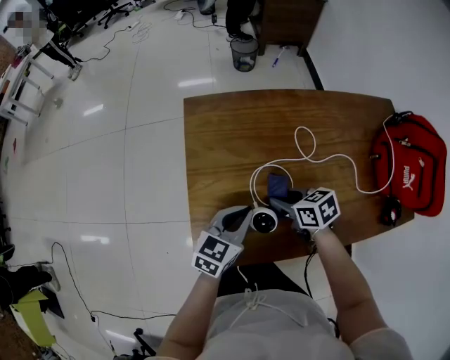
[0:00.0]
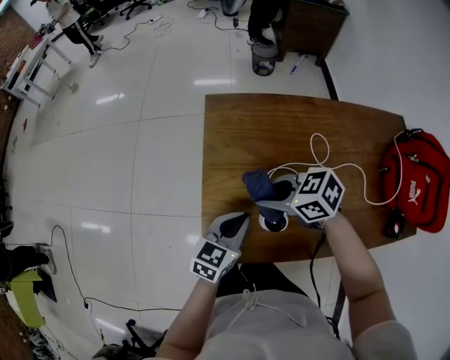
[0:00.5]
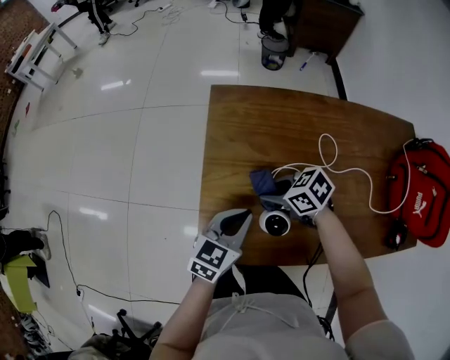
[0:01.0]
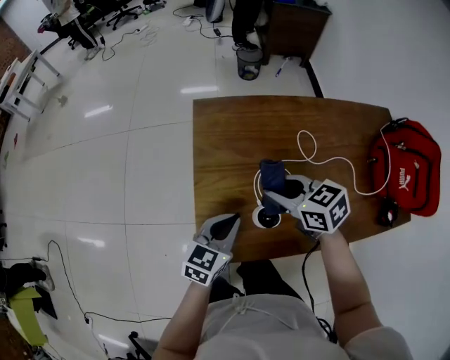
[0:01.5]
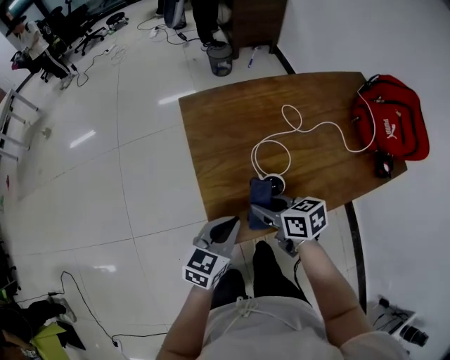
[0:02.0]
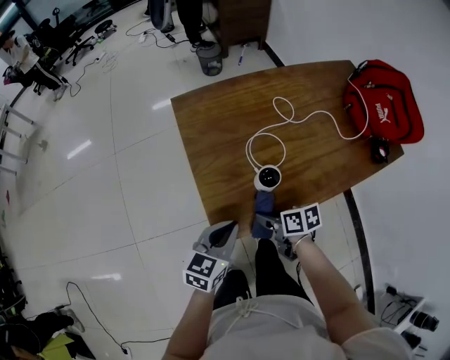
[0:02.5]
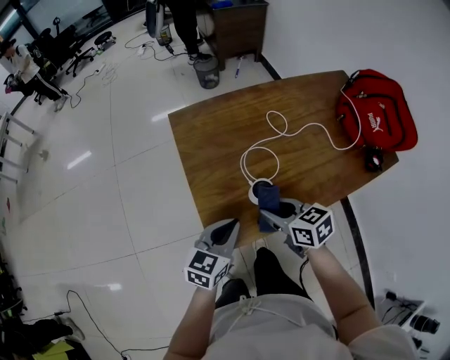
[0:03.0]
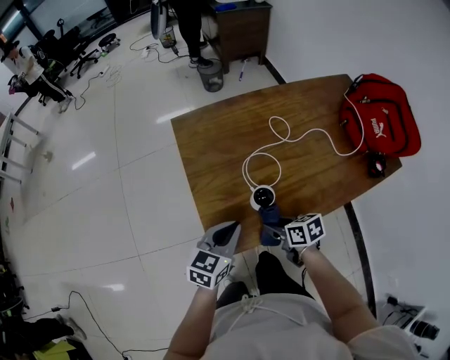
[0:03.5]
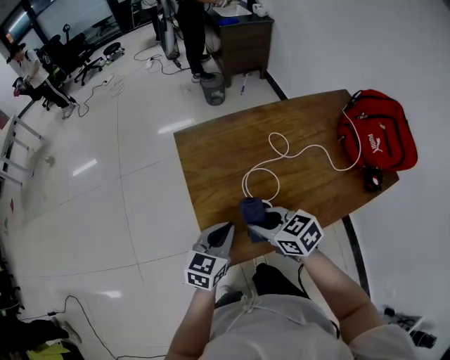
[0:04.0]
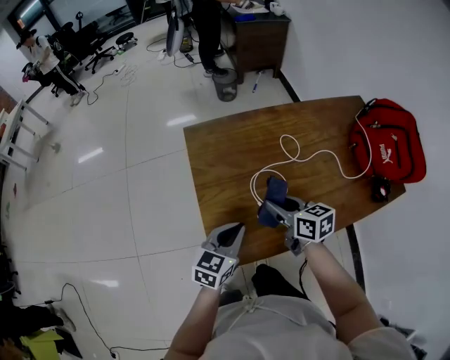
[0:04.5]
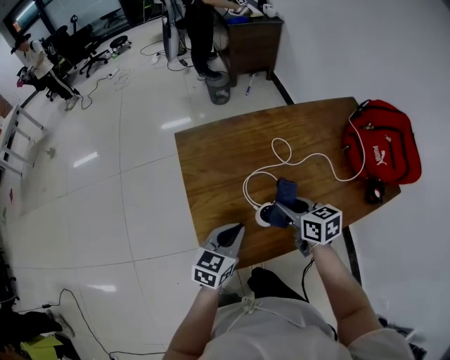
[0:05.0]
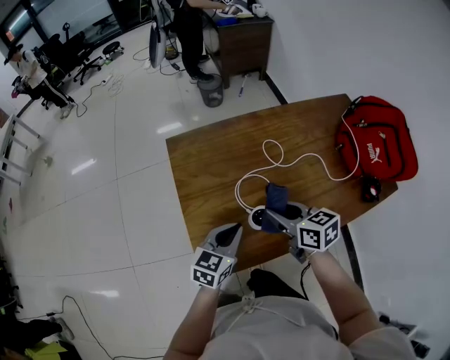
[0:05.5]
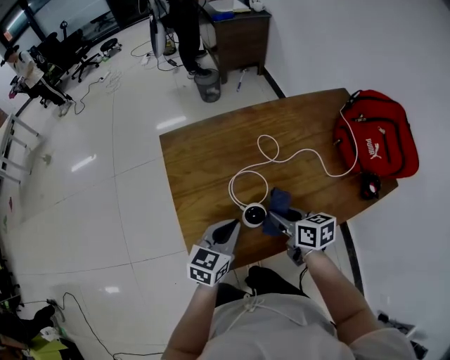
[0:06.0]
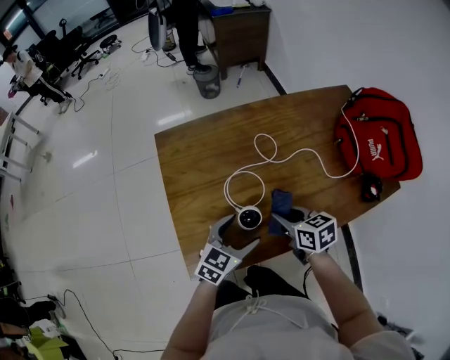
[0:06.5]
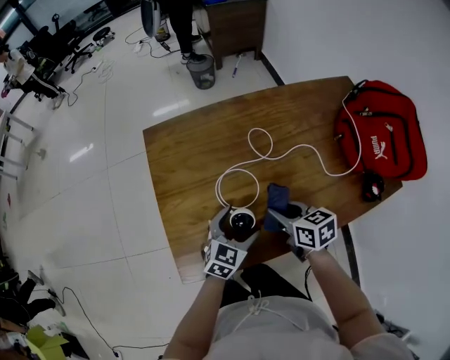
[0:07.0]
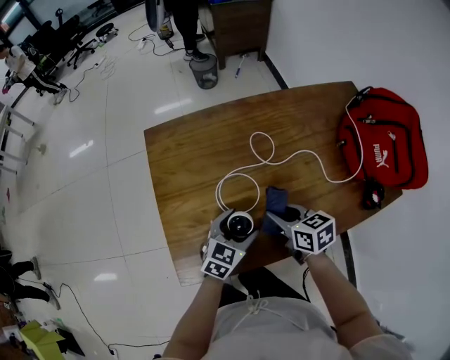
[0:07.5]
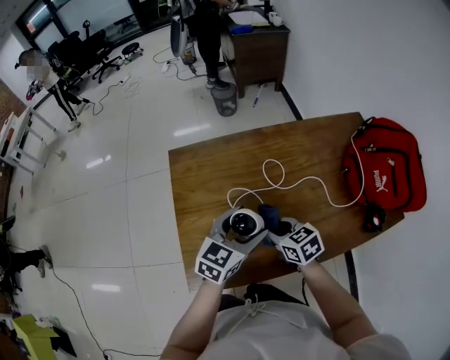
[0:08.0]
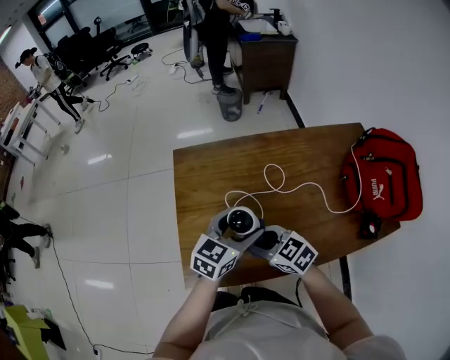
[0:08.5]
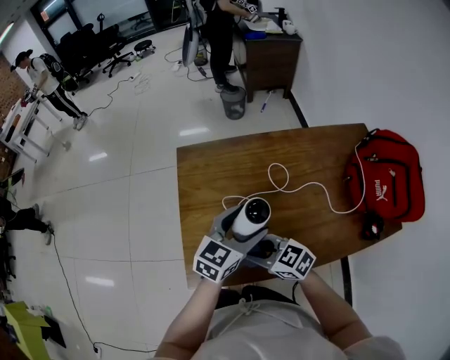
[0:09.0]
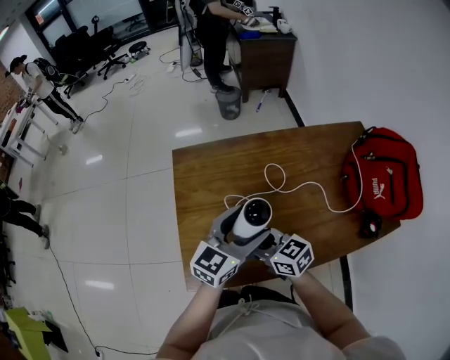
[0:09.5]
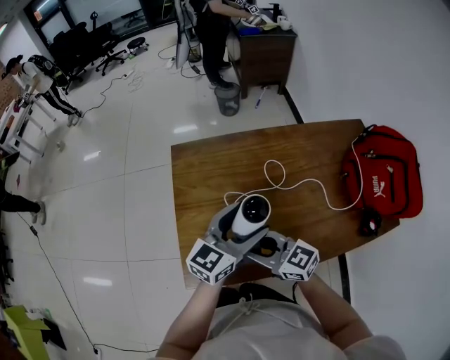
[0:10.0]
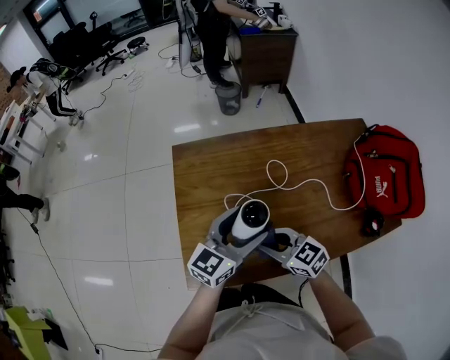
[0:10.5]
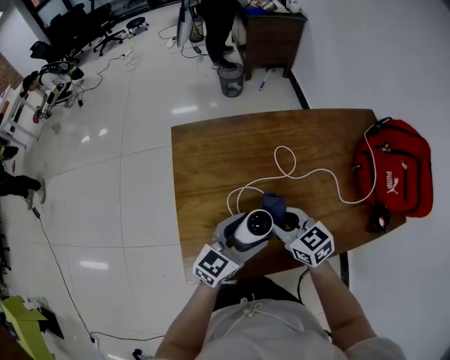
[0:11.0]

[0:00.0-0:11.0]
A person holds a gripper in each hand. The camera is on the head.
0:00.0 to 0:02.0: The left gripper moves roughly 15 cm. Meanwhile the right gripper goes up and down, some 10 cm each way, reversing 3 times.
0:02.0 to 0:03.5: The right gripper moves up and down over approximately 10 cm, changing direction 2 times.
0:03.5 to 0:05.5: The left gripper is displaced forward and to the right by about 10 cm. The right gripper is displaced upward and forward by some 20 cm, and turns by roughly 20 degrees.
0:05.5 to 0:07.5: The right gripper moves downward and to the right, roughly 10 cm. The left gripper travels to the right and downward by about 10 cm, and opens its fingers.
0:07.5 to 0:09.0: The right gripper moves to the left, backward and upward, roughly 15 cm, and swivels some 40 degrees. The left gripper travels upward by some 15 cm.
0:09.0 to 0:11.0: The left gripper goes some 5 cm downward; the right gripper goes about 10 cm forward and to the right, and changes its angle by roughly 20 degrees.

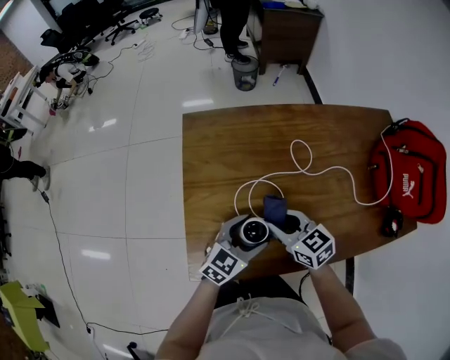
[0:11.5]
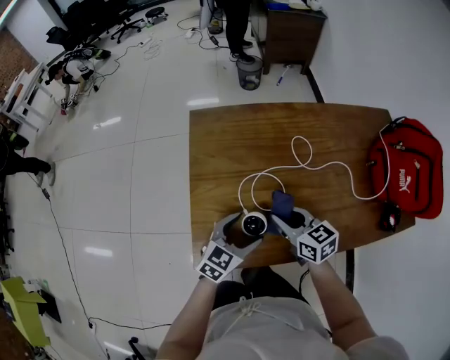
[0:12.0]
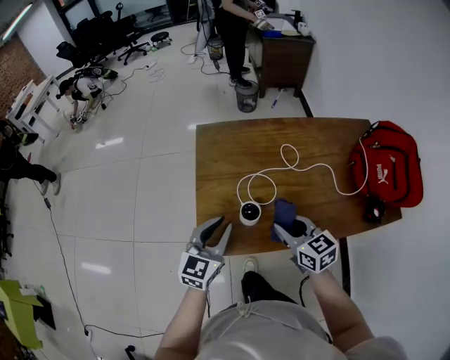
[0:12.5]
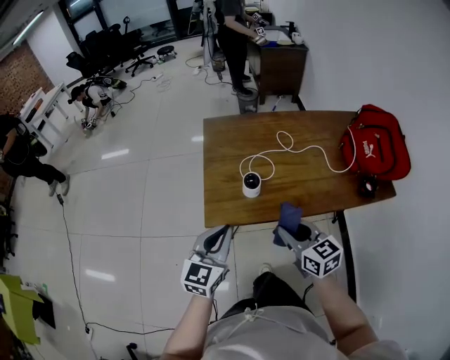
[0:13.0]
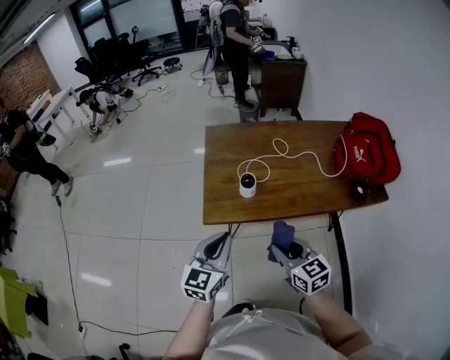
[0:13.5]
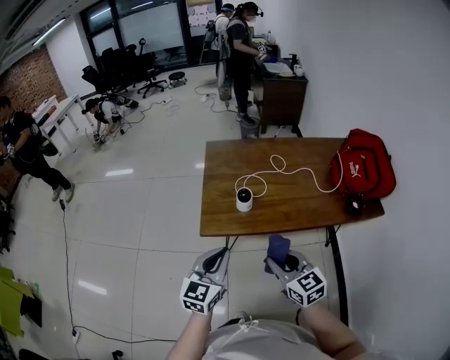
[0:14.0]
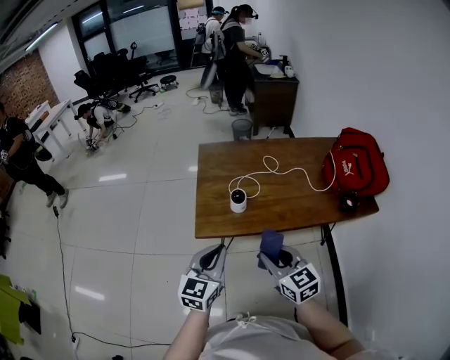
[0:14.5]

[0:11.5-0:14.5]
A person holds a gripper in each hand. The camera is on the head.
0:11.5 to 0:13.0: The left gripper heads backward, upward and to the left, covering approximately 30 cm, rotates roughly 30 degrees, and closes. The right gripper moves backward and upward, some 25 cm.
0:13.0 to 0:14.5: Both grippers move backward, approximately 5 cm.

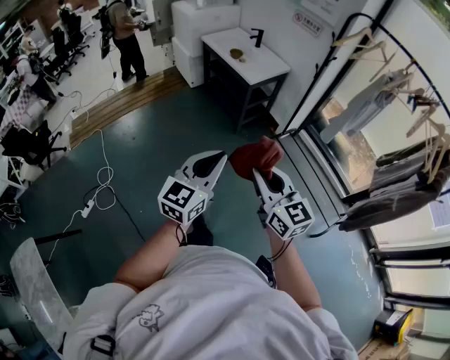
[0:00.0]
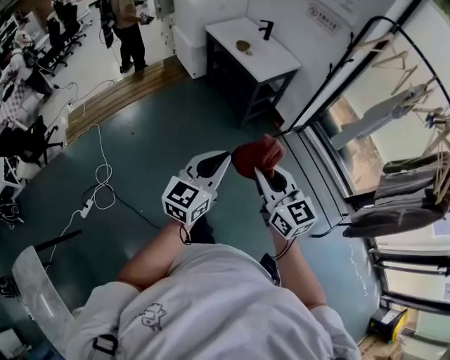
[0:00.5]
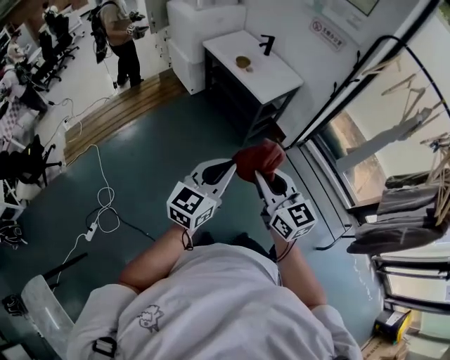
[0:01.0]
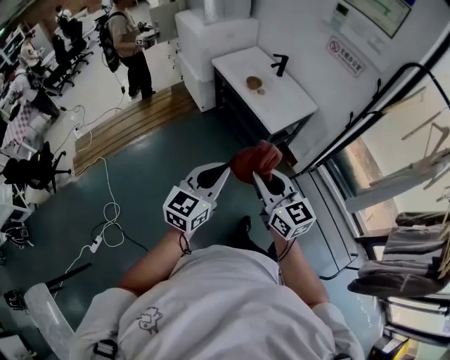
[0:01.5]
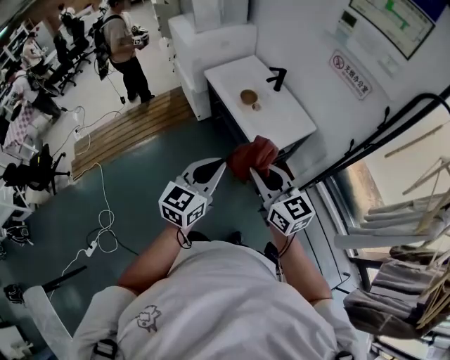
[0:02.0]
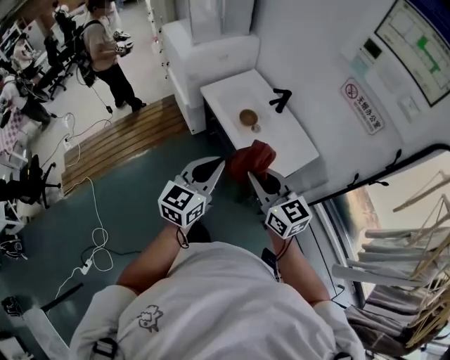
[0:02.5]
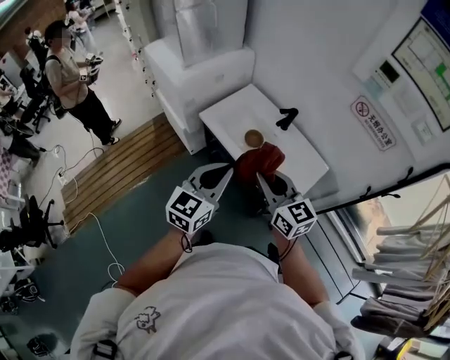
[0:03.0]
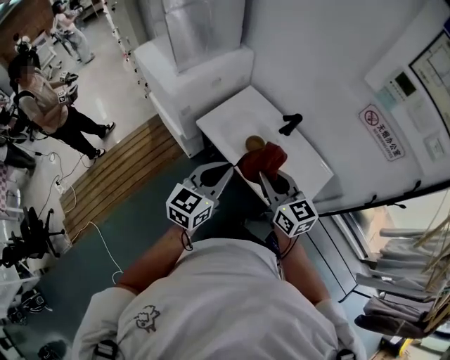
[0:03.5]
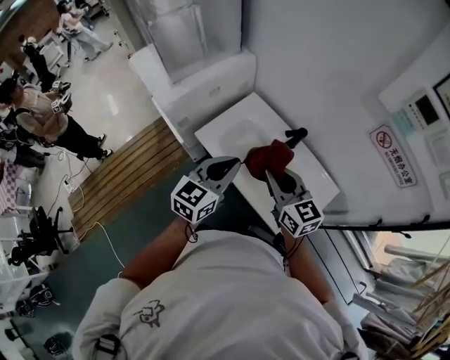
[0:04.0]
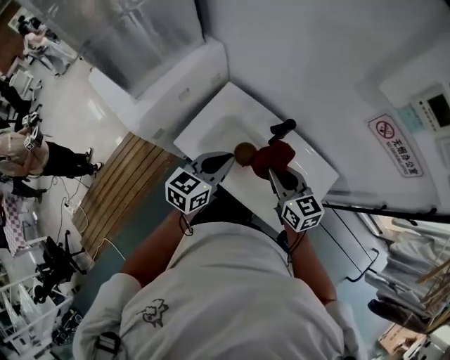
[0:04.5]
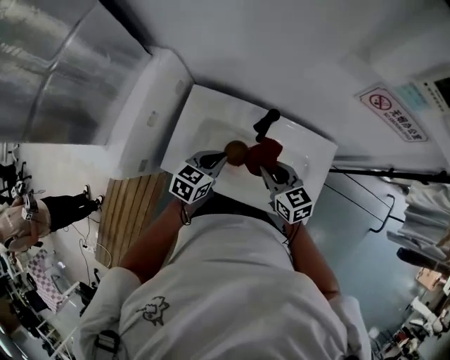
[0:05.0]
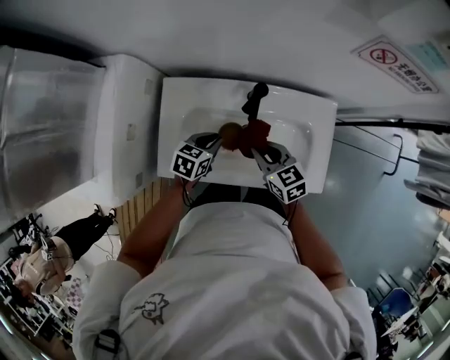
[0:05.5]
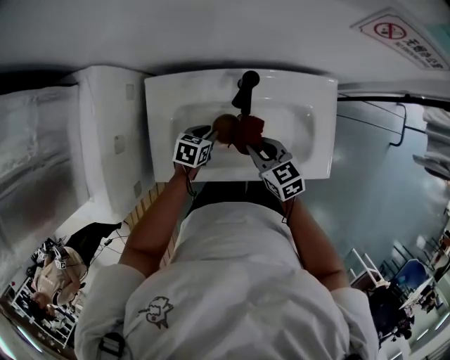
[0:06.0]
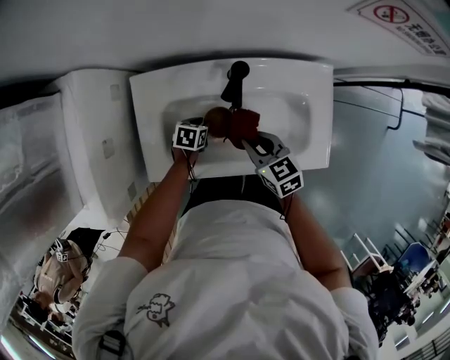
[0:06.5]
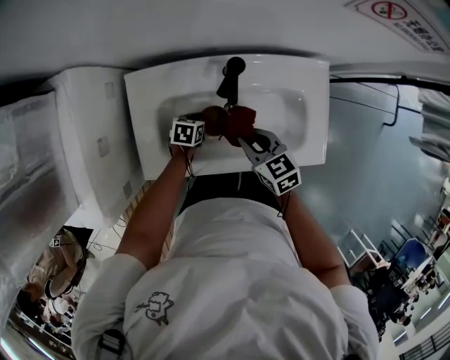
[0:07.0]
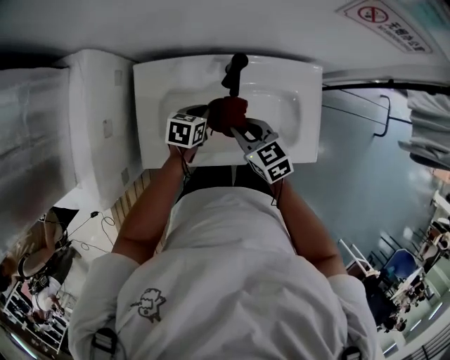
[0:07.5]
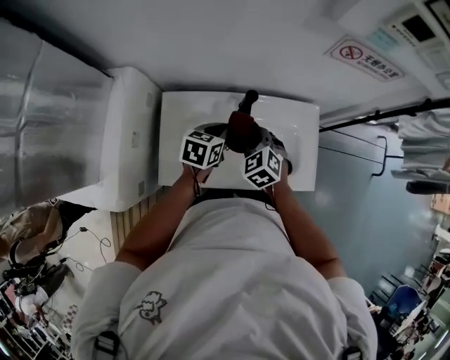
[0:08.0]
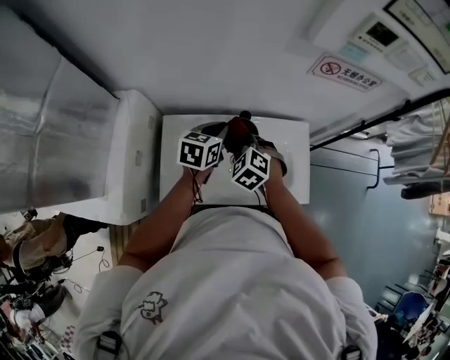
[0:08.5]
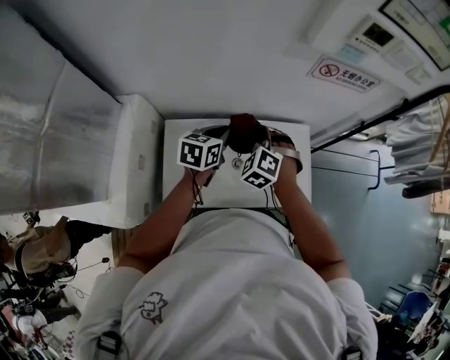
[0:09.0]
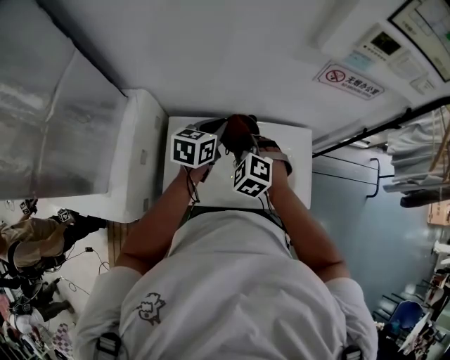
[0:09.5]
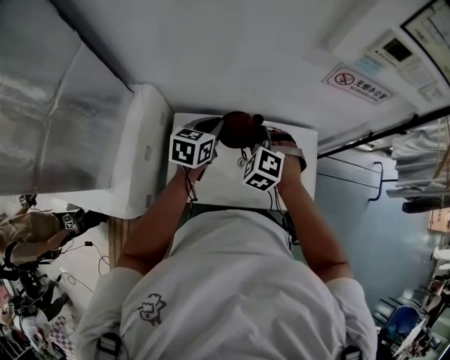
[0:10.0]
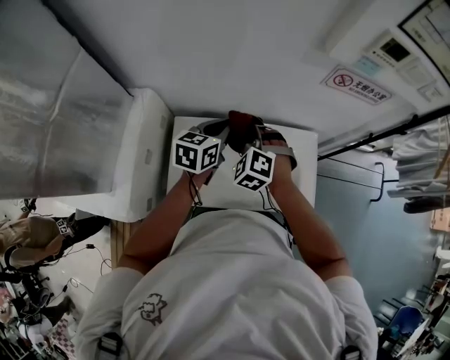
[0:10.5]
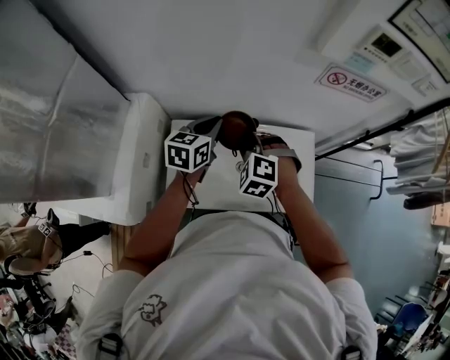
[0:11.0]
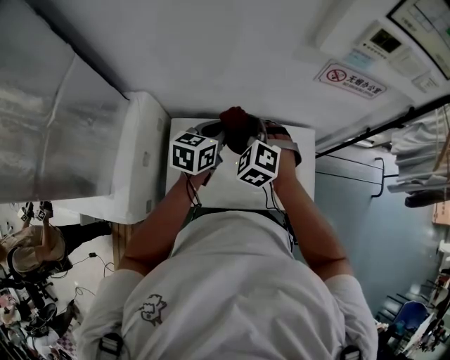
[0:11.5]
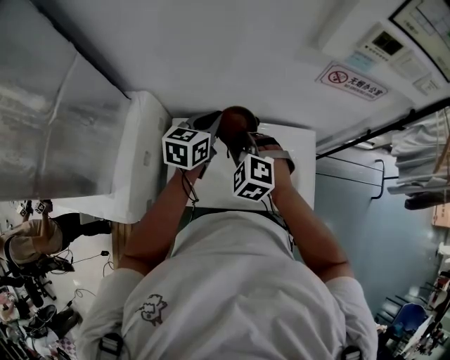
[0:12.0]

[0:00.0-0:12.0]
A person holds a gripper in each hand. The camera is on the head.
0:00.0 to 0:02.0: The pair of grippers is taken forward, some 60 cm.
0:02.0 to 0:04.0: The pair of grippers is taken forward, roughly 50 cm.
0:04.0 to 0:06.0: Both grippers travel together downward, about 35 cm. The right gripper changes its angle by roughly 50 degrees. The left gripper tips its fingers downward by roughly 40 degrees, and opens its fingers.
0:06.0 to 0:08.0: The right gripper is displaced upward by approximately 10 cm, and turns by some 40 degrees, while the left gripper goes about 20 cm upward.
0:08.0 to 0:10.0: The right gripper moves upward, approximately 10 cm, and changes its angle by roughly 30 degrees, while the left gripper goes about 10 cm upward and to the left.
0:10.0 to 0:12.0: The right gripper changes place by roughly 5 cm, while the left gripper changes place by about 5 cm.
